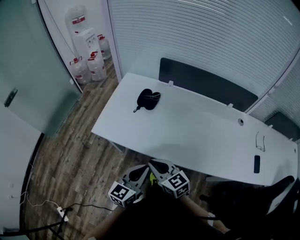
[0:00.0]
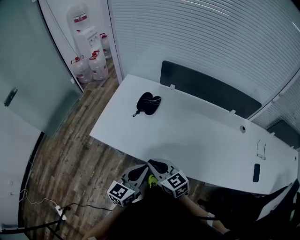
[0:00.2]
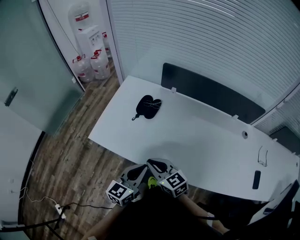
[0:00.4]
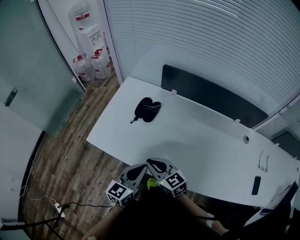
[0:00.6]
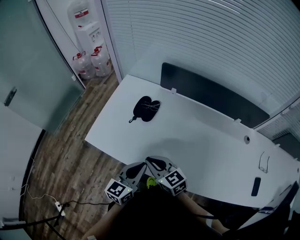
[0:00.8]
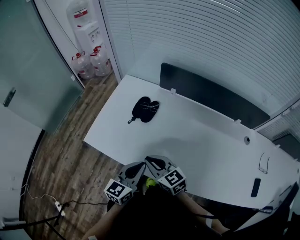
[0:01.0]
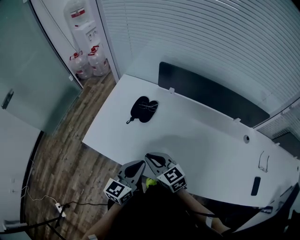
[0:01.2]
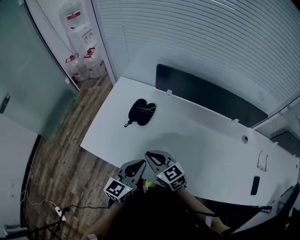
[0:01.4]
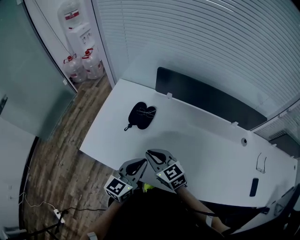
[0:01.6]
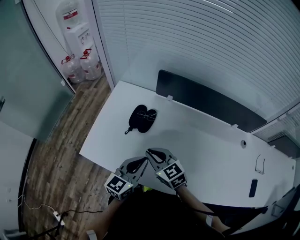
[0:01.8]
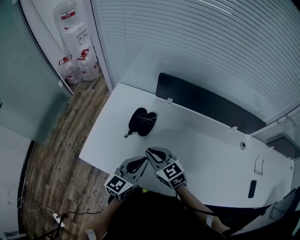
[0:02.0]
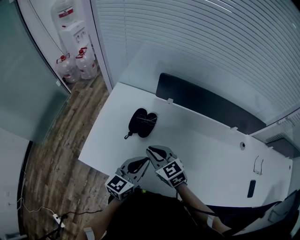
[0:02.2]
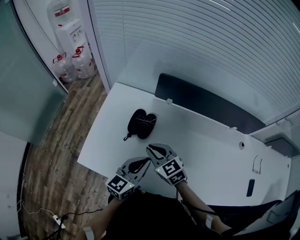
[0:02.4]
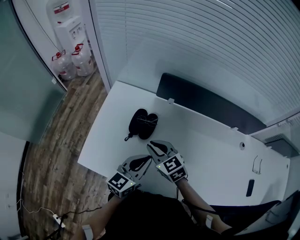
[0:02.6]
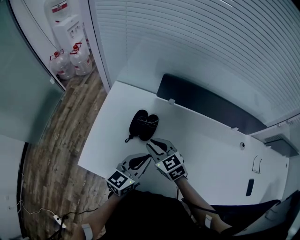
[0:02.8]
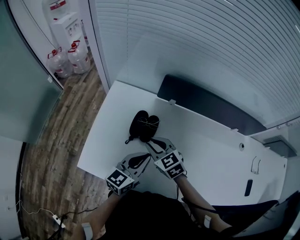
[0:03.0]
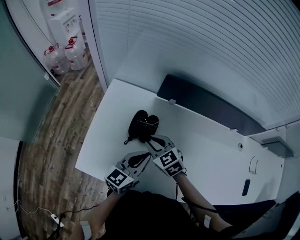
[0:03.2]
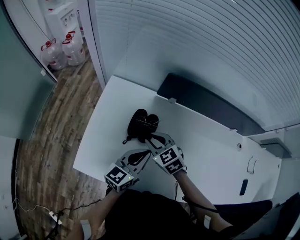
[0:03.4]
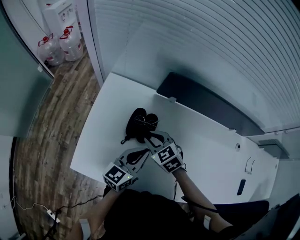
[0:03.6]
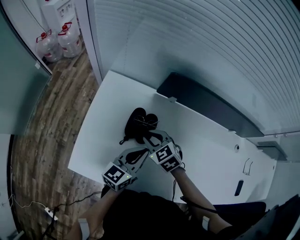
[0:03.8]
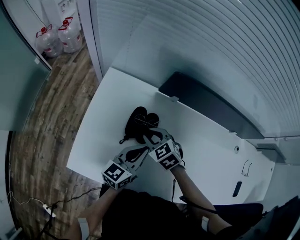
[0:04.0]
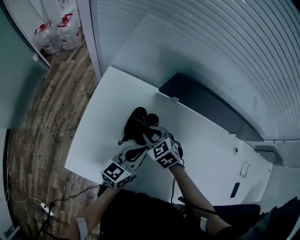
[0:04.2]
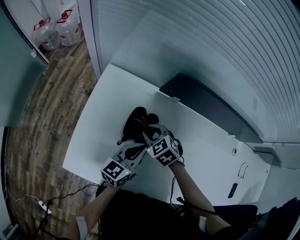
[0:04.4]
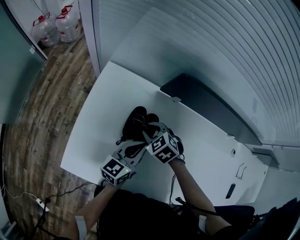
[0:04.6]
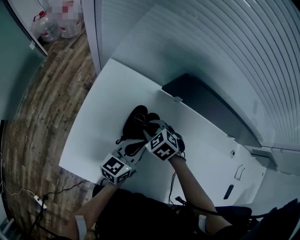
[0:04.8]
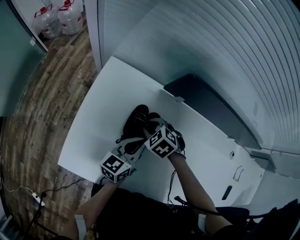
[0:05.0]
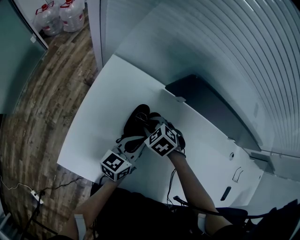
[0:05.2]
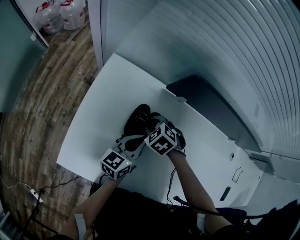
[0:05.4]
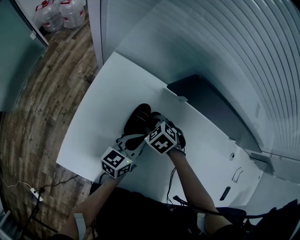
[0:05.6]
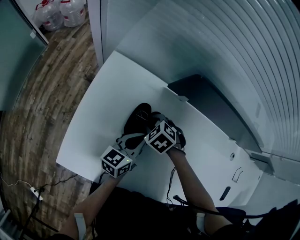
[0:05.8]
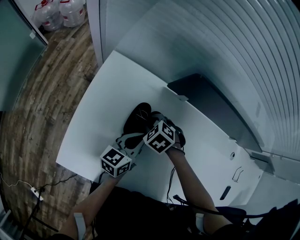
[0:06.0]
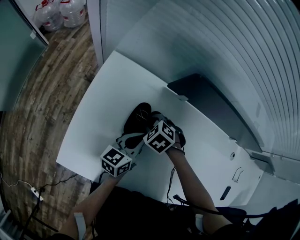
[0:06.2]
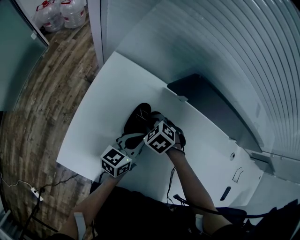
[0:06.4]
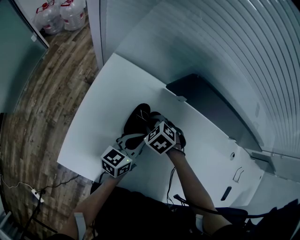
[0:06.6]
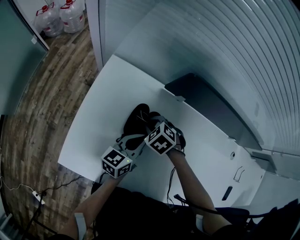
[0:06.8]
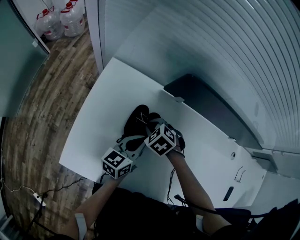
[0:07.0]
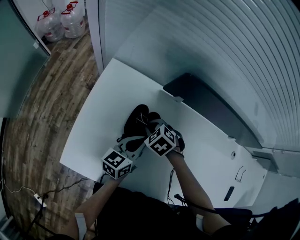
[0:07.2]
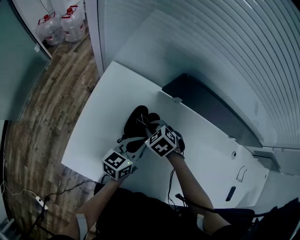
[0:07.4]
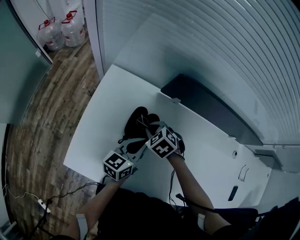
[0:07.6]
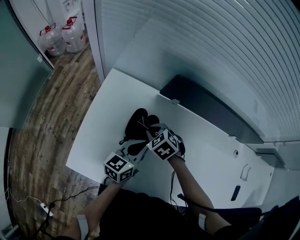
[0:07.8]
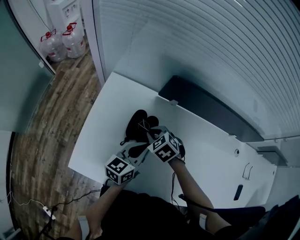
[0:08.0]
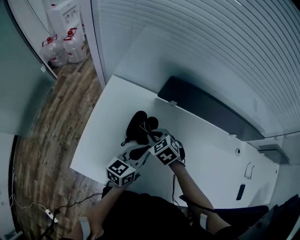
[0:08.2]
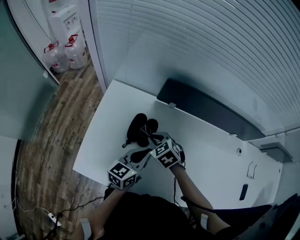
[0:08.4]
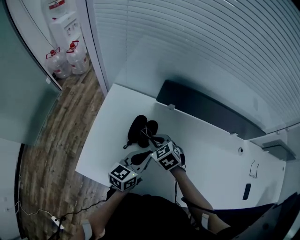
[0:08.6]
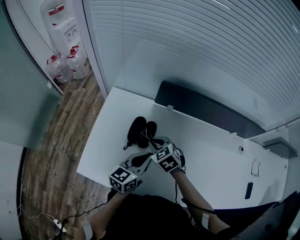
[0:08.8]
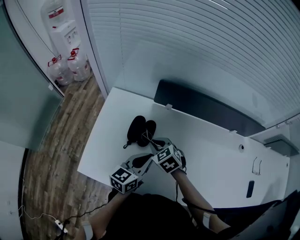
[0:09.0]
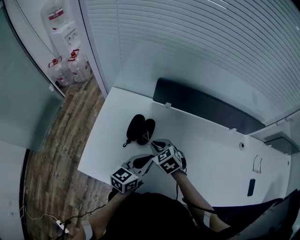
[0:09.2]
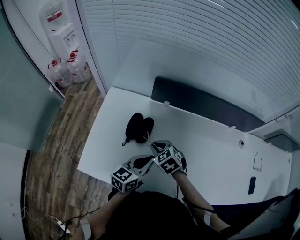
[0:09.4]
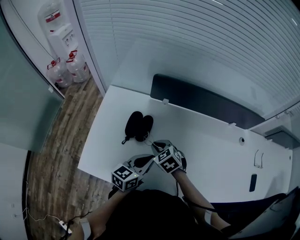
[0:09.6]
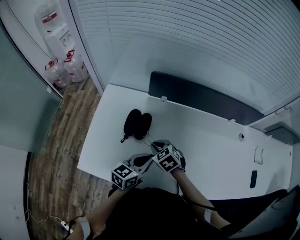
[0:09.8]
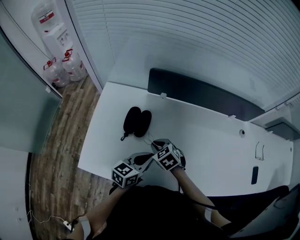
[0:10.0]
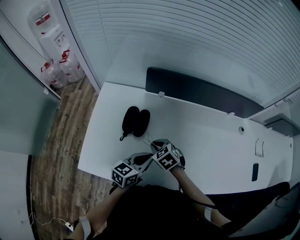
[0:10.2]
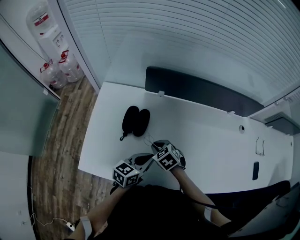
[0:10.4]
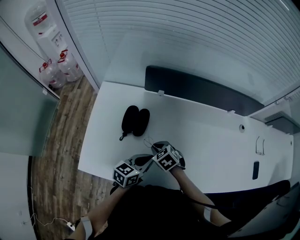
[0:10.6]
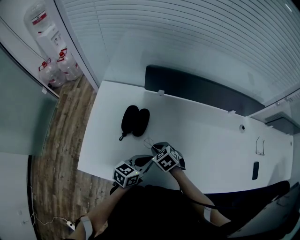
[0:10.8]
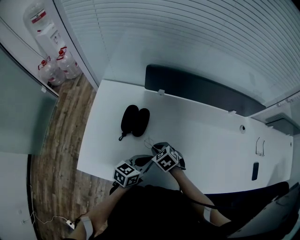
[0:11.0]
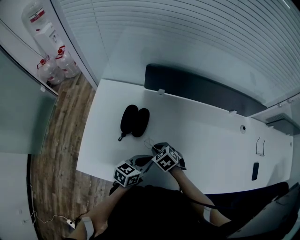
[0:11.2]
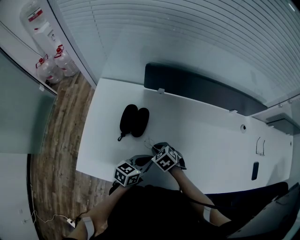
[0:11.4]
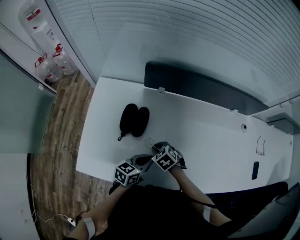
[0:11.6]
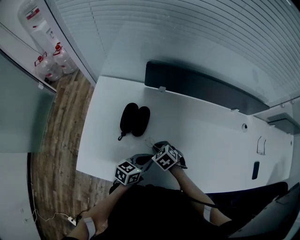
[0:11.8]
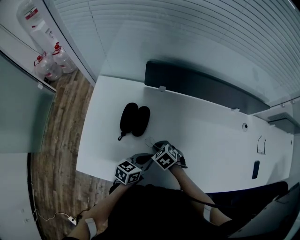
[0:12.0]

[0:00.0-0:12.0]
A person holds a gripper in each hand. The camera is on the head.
0:00.0 to 0:01.6: Both grippers travel together forward, roughly 15 cm.
0:01.6 to 0:03.0: Both grippers travel together forward, roughly 10 cm.
0:03.0 to 0:04.4: The right gripper goes about 10 cm downward and forward, and turns by approximately 20 degrees. Meanwhile the left gripper heads forward and downward, covering roughly 10 cm.
0:04.4 to 0:06.0: The right gripper is displaced downward by approximately 5 cm, and changes its angle by some 20 degrees, while the left gripper shifts by some 5 cm.
0:06.0 to 0:07.6: There are only small adjustments of the grippers.
0:07.6 to 0:09.0: The right gripper shifts roughly 10 cm upward and backward, and rotates some 20 degrees; the left gripper is displaced backward by roughly 10 cm.
0:09.0 to 0:10.4: Both grippers move downward and backward, approximately 10 cm.
0:10.4 to 0:12.0: Both grippers travel together downward, some 5 cm.

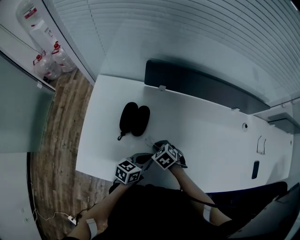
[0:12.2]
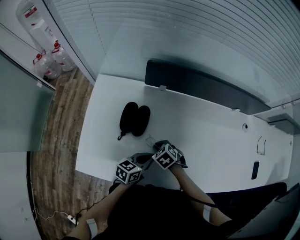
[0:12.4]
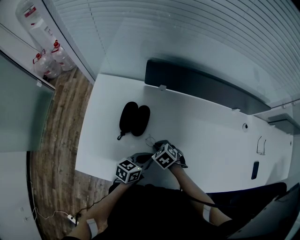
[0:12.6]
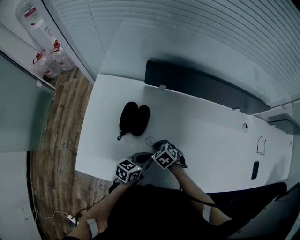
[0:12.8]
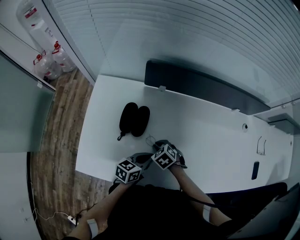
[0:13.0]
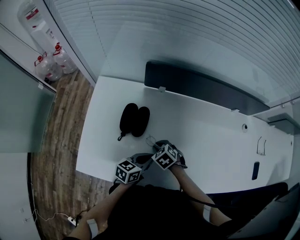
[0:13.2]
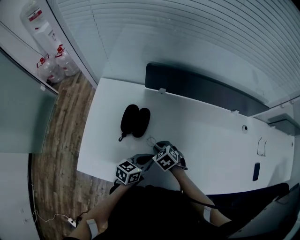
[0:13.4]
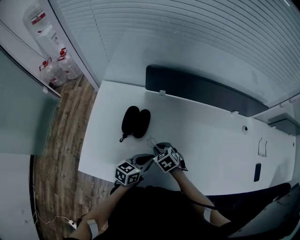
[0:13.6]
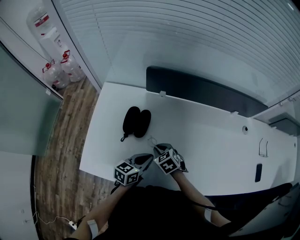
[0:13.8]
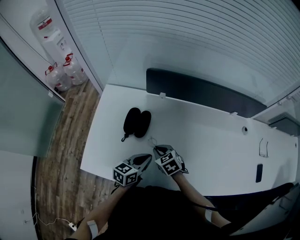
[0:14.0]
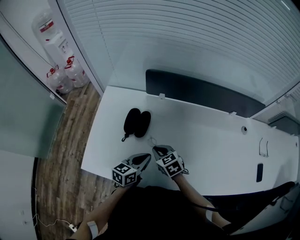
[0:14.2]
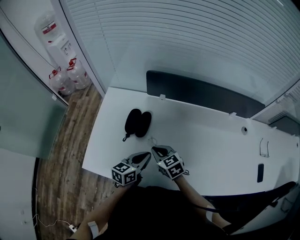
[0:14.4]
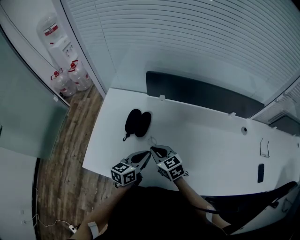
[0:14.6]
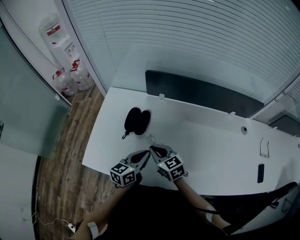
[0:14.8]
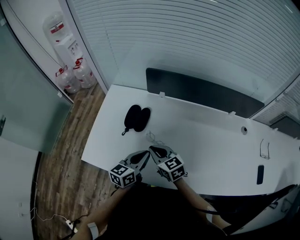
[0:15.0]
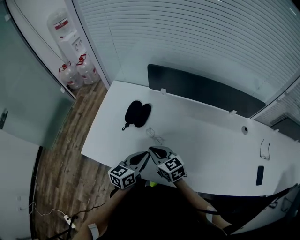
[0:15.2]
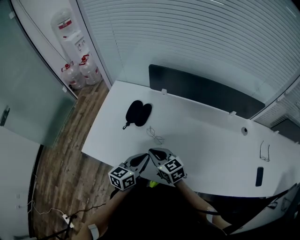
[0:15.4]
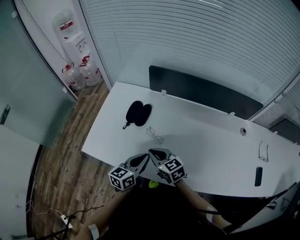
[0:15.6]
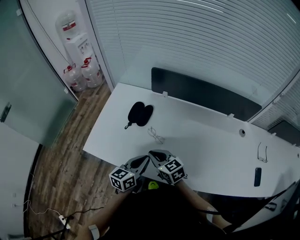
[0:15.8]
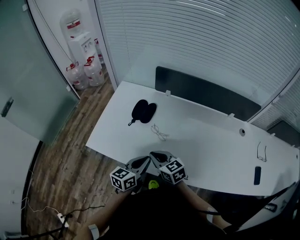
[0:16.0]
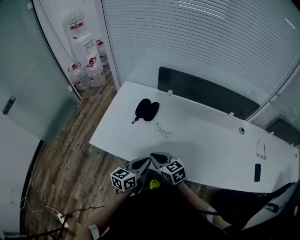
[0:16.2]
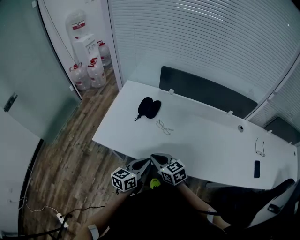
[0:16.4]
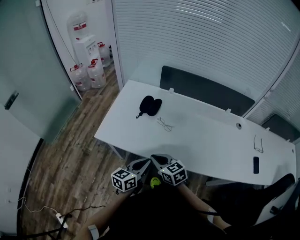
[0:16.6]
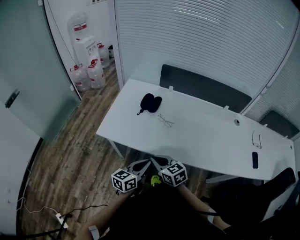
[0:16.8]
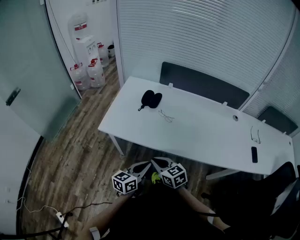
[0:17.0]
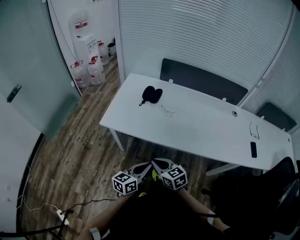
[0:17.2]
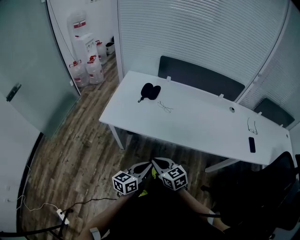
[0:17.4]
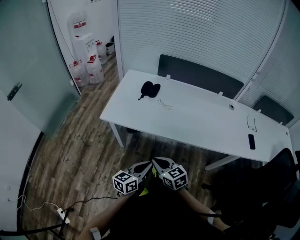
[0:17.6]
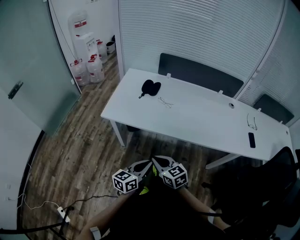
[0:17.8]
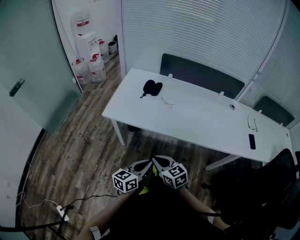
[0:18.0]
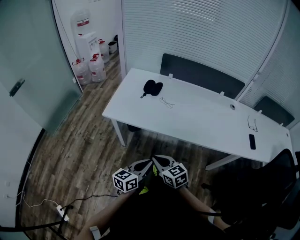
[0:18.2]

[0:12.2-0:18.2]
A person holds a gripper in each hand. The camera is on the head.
0:12.2 to 0:13.8: The grippers make only small movements.
0:13.8 to 0:15.2: The left gripper is displaced upward by some 5 cm, while the right gripper moves upward and backward, some 15 cm, and angles its fingers upward, by approximately 30 degrees.
0:15.2 to 0:16.6: Both grippers travel together backward and to the left, about 15 cm.
0:16.6 to 0:18.2: Both grippers travel together backward, roughly 15 cm.

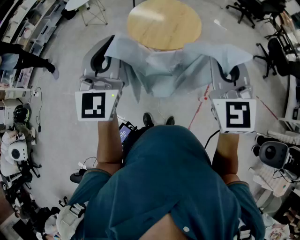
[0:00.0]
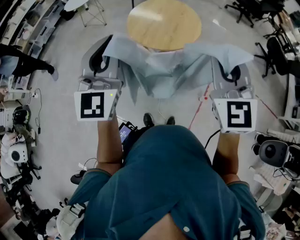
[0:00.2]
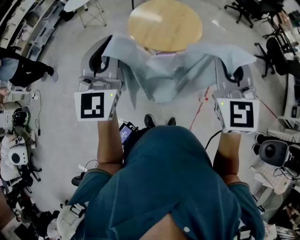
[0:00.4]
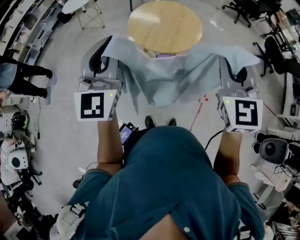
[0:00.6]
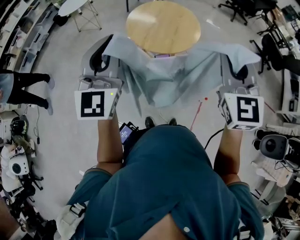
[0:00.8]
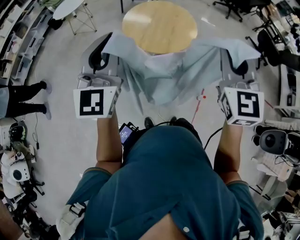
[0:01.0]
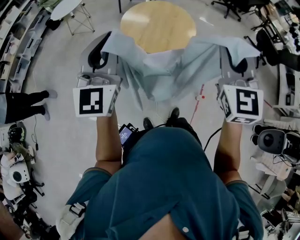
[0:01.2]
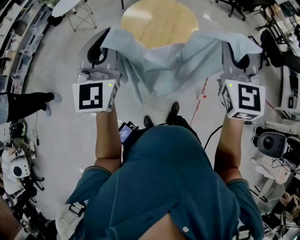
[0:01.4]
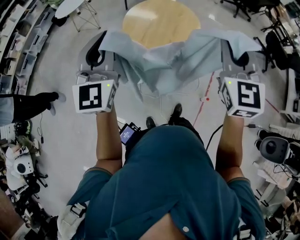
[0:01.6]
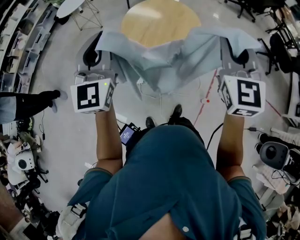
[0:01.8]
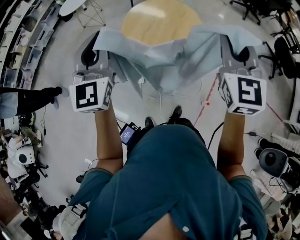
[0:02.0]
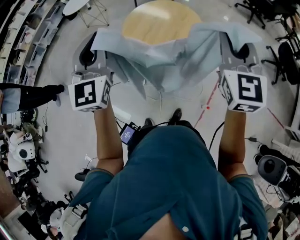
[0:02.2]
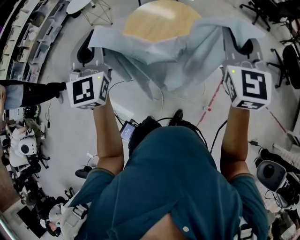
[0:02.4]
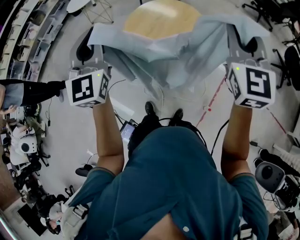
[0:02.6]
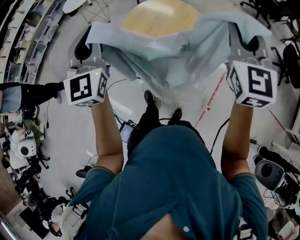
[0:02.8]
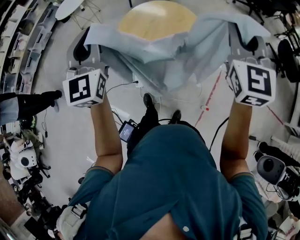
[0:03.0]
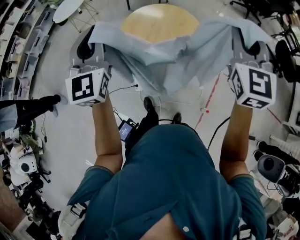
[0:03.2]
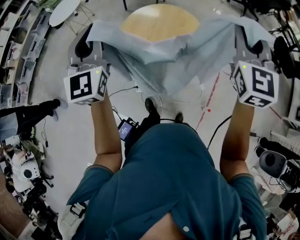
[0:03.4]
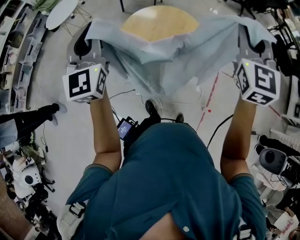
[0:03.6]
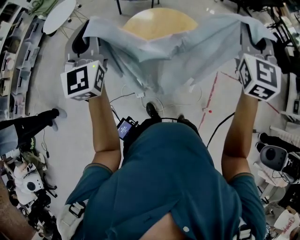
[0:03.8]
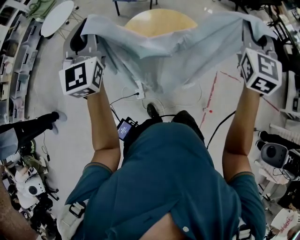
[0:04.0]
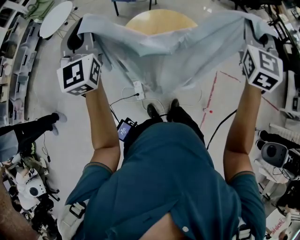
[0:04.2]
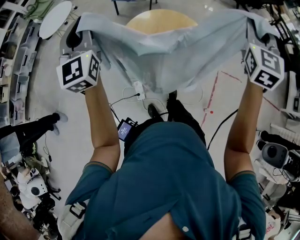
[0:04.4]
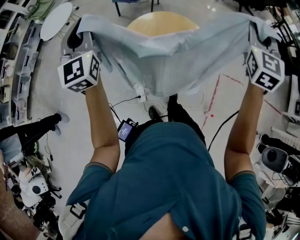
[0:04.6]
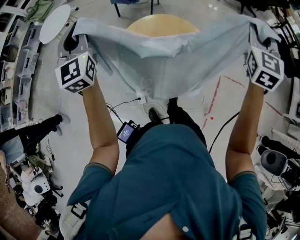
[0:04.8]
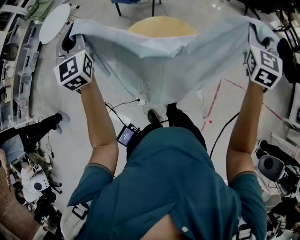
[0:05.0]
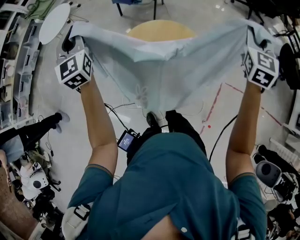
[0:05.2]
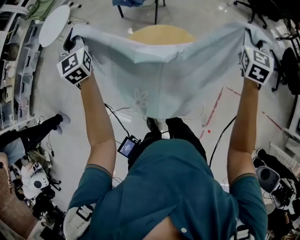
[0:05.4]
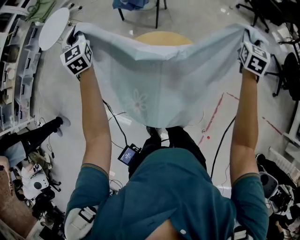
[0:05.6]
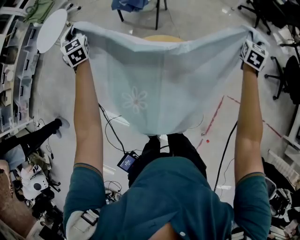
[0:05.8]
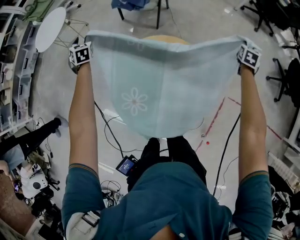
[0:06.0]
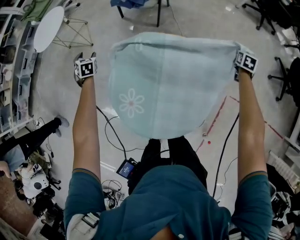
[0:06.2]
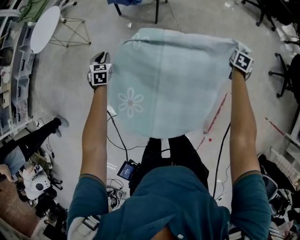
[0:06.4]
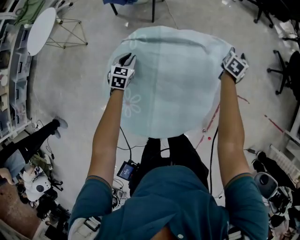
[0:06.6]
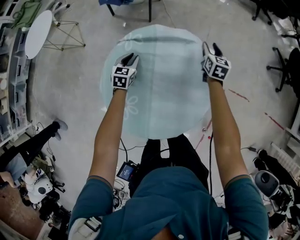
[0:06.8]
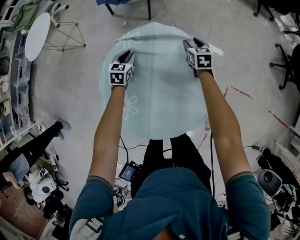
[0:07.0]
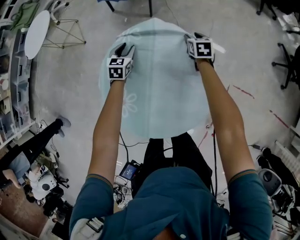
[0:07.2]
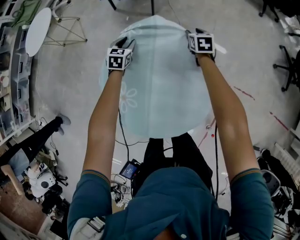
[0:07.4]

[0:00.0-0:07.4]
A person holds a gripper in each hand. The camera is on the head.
0:00.0 to 0:01.4: The left gripper heads forward and to the left, covering some 10 cm. The right gripper moves forward, roughly 10 cm.
0:01.4 to 0:03.0: The left gripper shifts some 20 cm forward. Meanwhile the right gripper is displaced forward and to the right by approximately 25 cm.
0:03.0 to 0:04.4: The left gripper travels forward and to the left by some 25 cm. Meanwhile the right gripper travels forward by approximately 15 cm, and swivels some 20 degrees.
0:04.4 to 0:06.0: The left gripper travels forward and downward by roughly 50 cm, tips its fingers downward by some 40 degrees, and opens its fingers; the right gripper is displaced forward, downward and to the right by roughly 60 cm, and turns by about 30 degrees.
0:06.0 to 0:07.4: The left gripper ends up about 30 cm from where it was, turns by some 40 degrees, and closes and opens again. Meanwhile the right gripper ends up some 30 cm from where it was, swivels some 30 degrees, and opens up.
